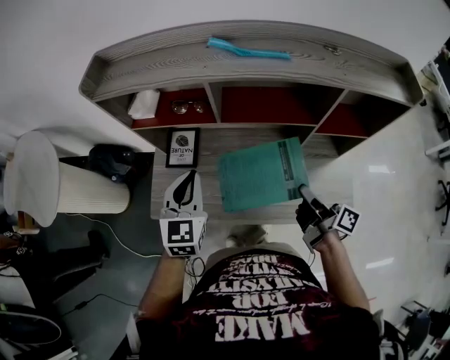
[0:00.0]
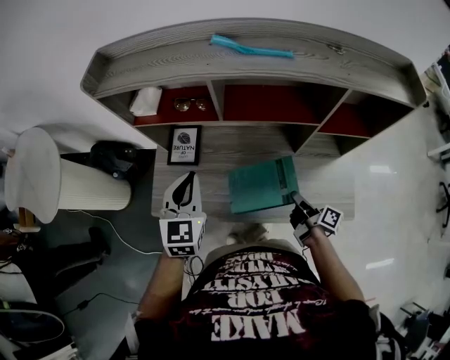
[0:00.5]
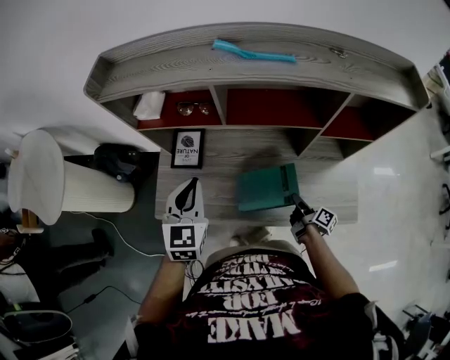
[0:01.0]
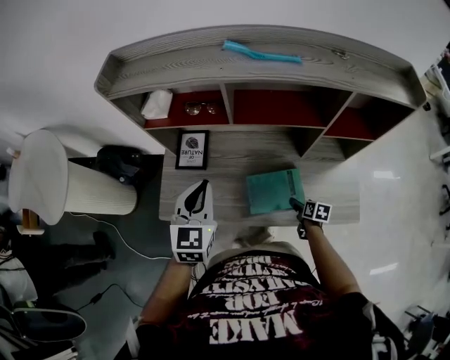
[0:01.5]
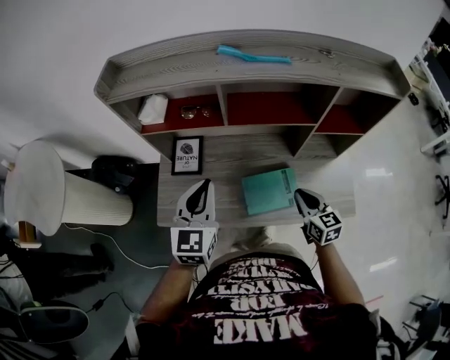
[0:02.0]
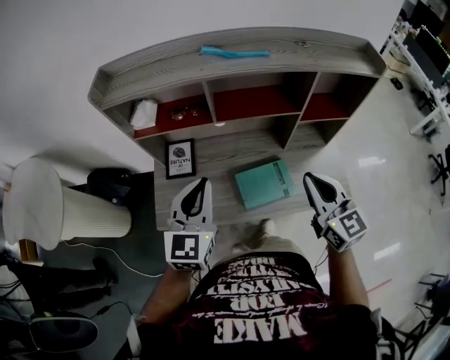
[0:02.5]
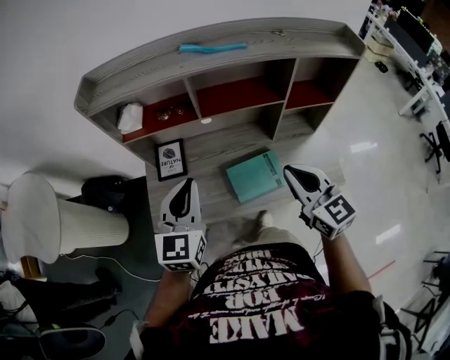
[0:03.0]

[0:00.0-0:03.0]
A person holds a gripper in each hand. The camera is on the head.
0:00.0 to 0:01.5: The right gripper heads downward, covering about 30 cm, points its fingers about 50 degrees further downward, and opens.
0:01.5 to 0:03.0: The right gripper travels upward by some 40 cm, tips its fingers upward by approximately 40 degrees, and closes. Meanwhile the left gripper shifts approximately 10 cm upward and backward.

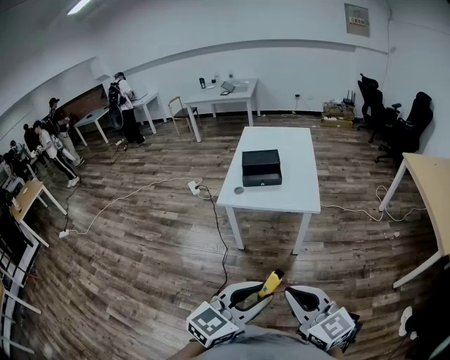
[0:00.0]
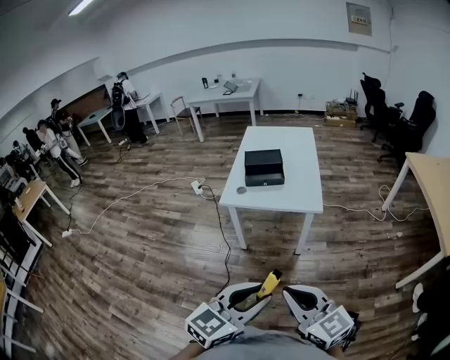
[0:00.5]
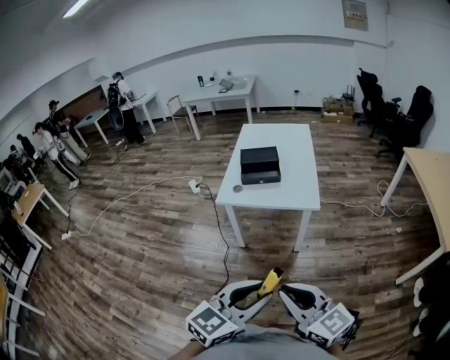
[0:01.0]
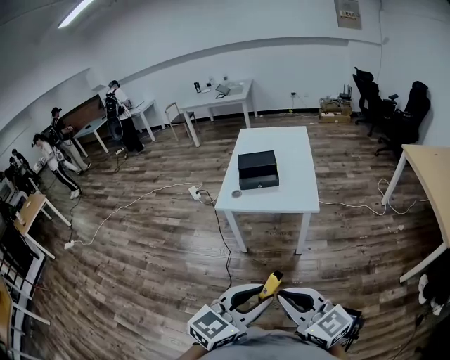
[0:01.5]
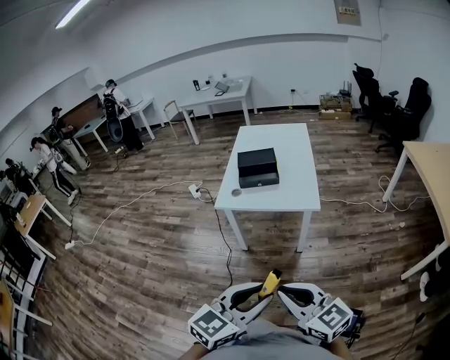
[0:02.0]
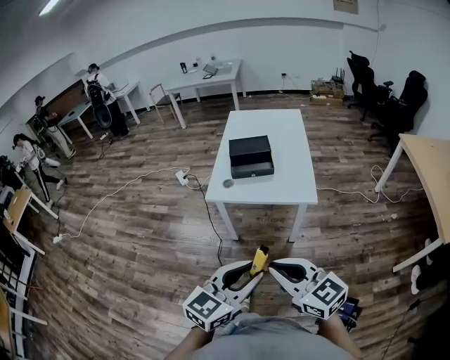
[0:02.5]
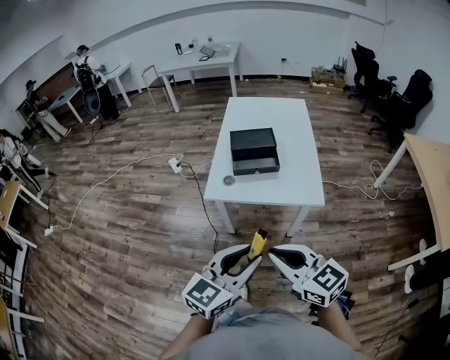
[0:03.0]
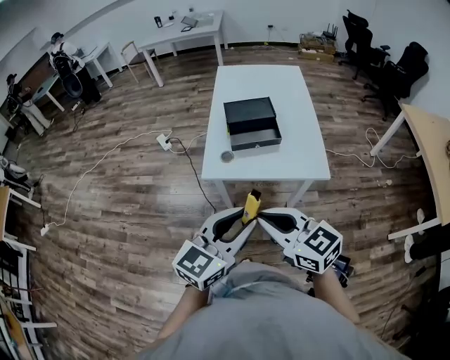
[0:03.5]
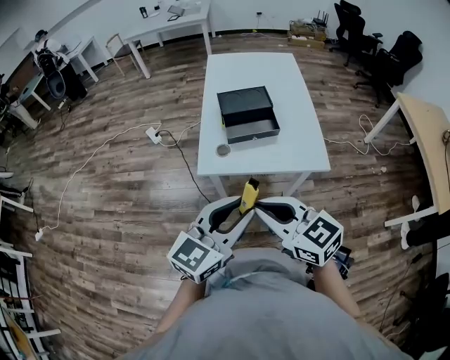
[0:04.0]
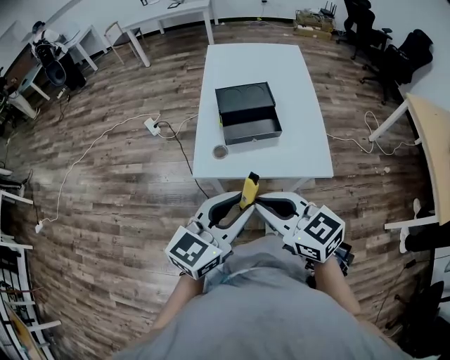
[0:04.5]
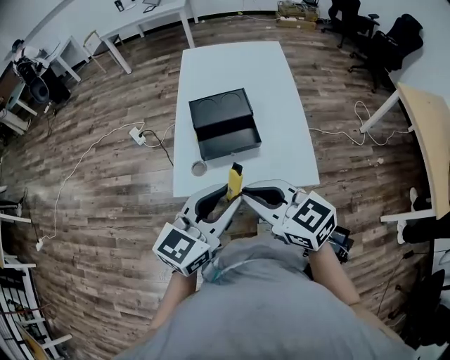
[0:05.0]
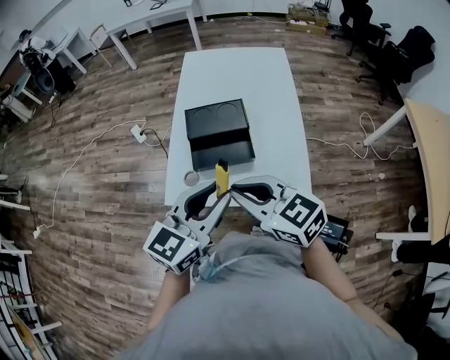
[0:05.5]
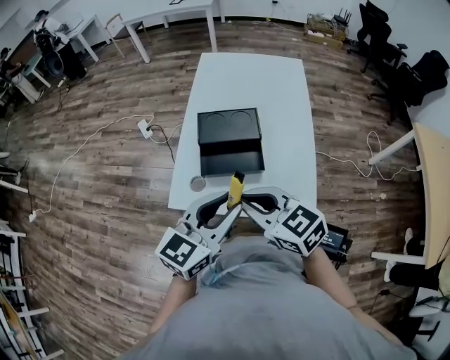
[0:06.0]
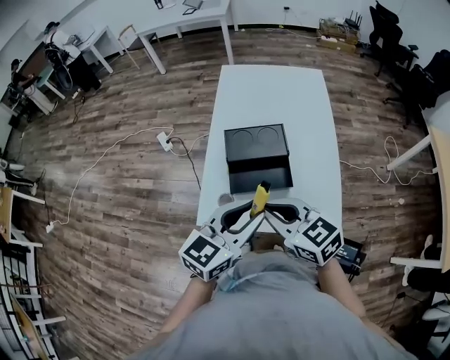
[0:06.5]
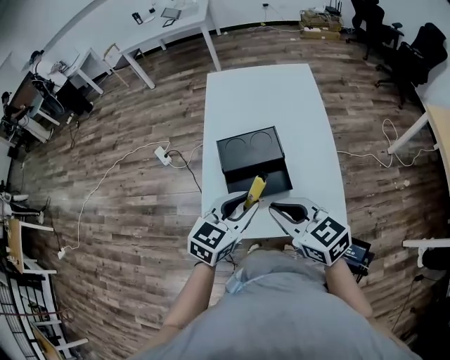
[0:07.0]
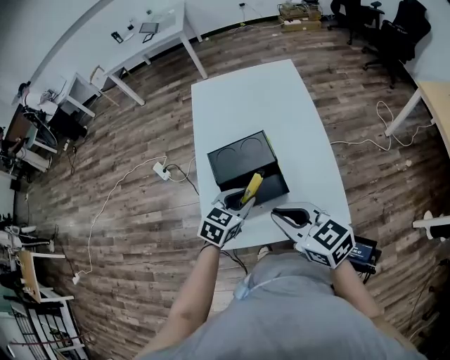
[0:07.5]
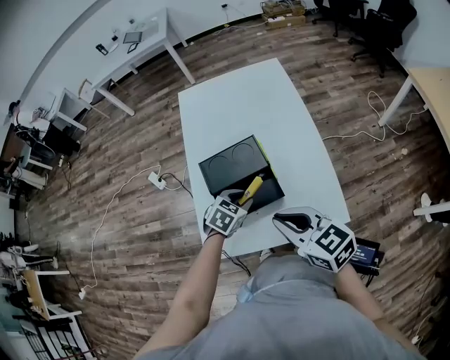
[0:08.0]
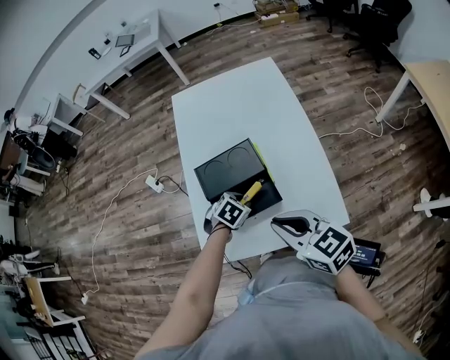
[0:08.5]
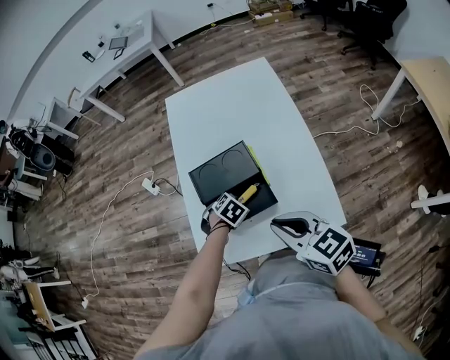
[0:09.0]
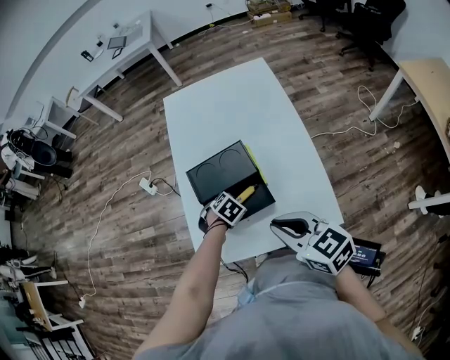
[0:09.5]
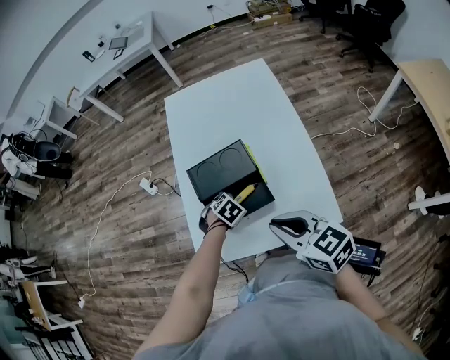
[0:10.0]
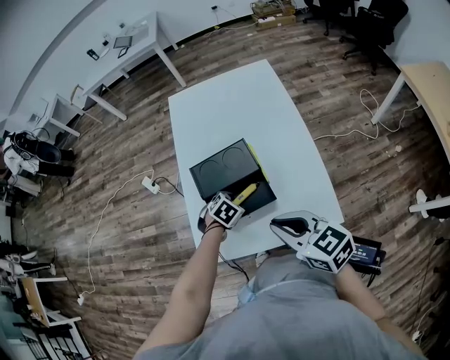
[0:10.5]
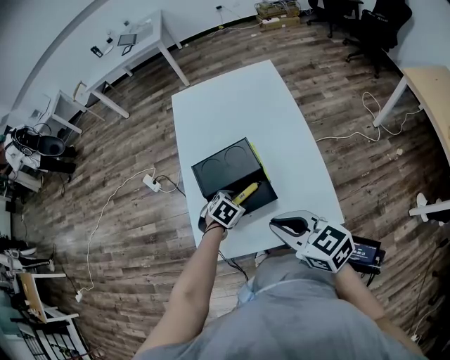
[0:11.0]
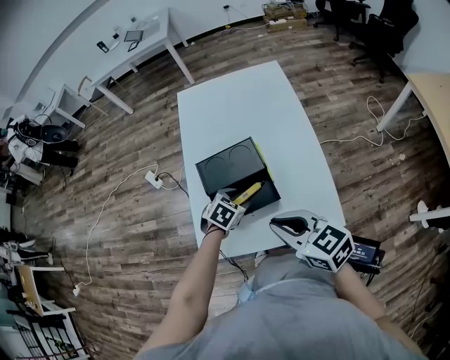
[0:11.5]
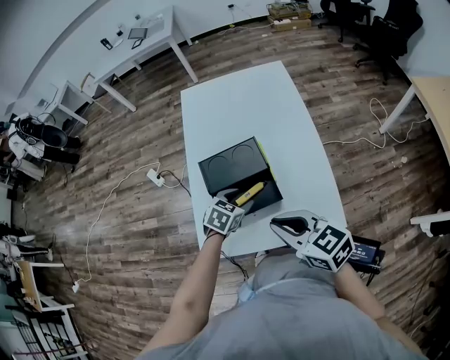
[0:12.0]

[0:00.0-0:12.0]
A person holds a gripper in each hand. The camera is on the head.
0:00.0 to 0:02.0: There are only small adjustments of the grippers.
0:02.0 to 0:04.0: Both grippers travel together forward and to the left, approximately 30 cm.
0:04.0 to 0:06.0: Both grippers move forward and to the right, roughly 25 cm.
0:06.0 to 0:08.0: The right gripper moves forward, roughly 5 cm, and changes its angle by approximately 20 degrees; the left gripper moves downward and forward, approximately 30 cm, and tilts its fingers about 40 degrees downward.
0:08.0 to 0:10.0: The left gripper is displaced downward by some 10 cm, and turns by roughly 20 degrees.
0:10.0 to 0:12.0: The left gripper travels upward by some 10 cm, and changes its angle by roughly 30 degrees.

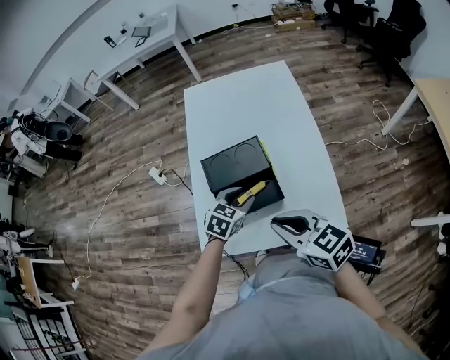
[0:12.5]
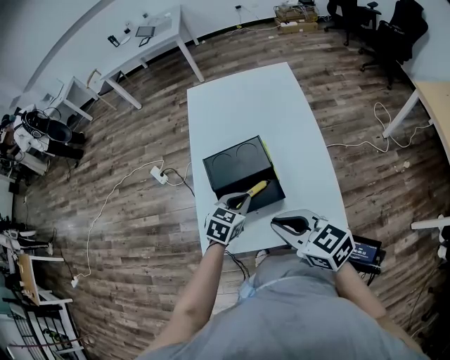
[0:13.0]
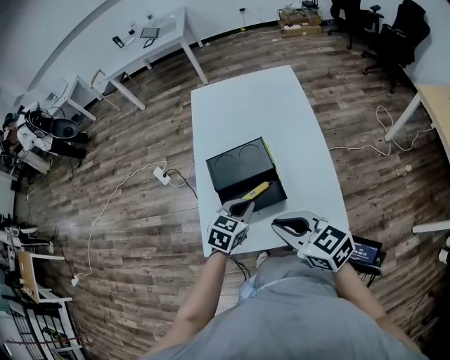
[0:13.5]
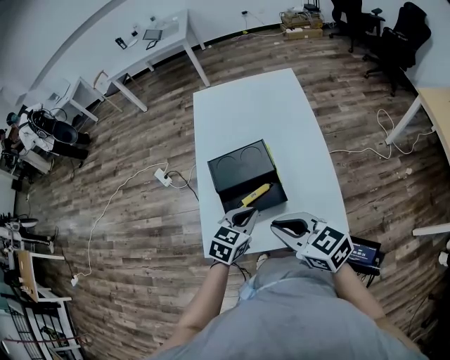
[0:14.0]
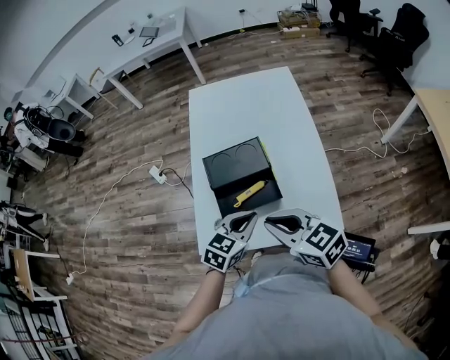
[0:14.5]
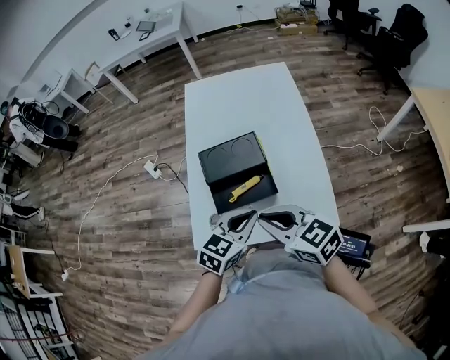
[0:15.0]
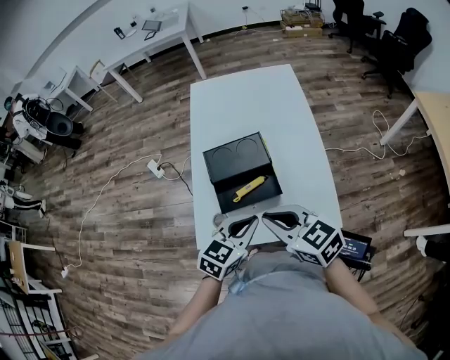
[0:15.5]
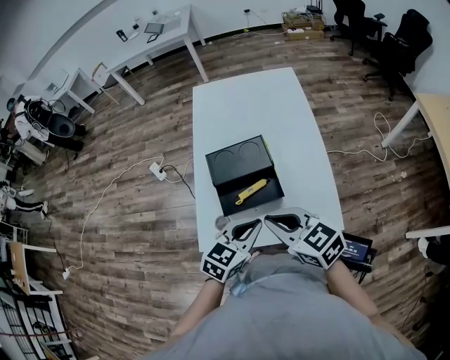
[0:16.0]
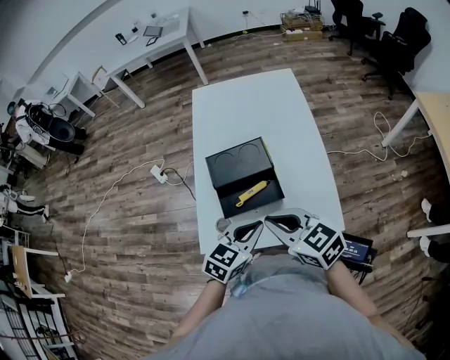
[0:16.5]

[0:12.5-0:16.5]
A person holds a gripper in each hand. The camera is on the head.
0:12.5 to 0:14.5: The left gripper is displaced backward and upward by about 10 cm, and closes its fingers.
0:14.5 to 0:16.5: The grippers move only a little.

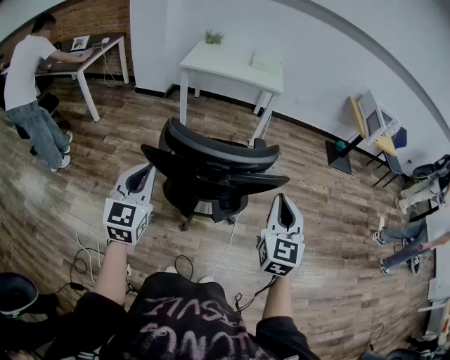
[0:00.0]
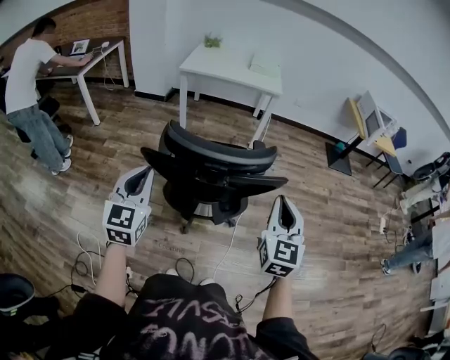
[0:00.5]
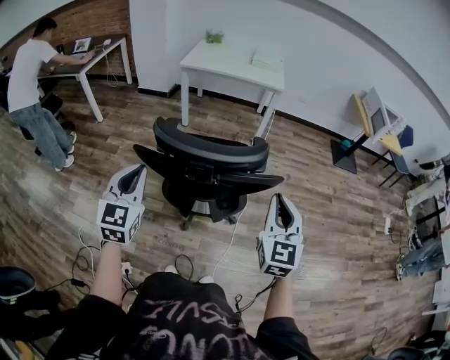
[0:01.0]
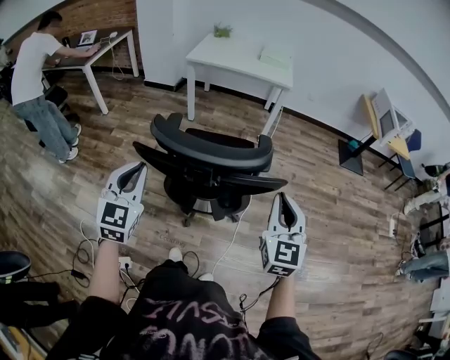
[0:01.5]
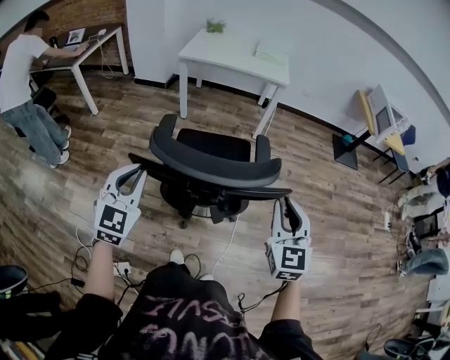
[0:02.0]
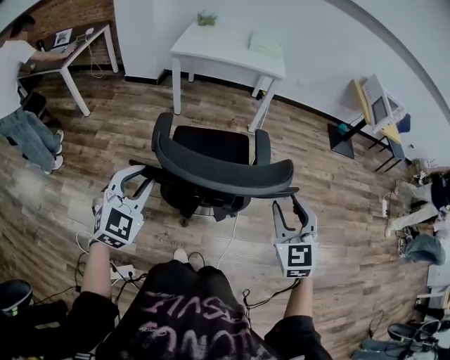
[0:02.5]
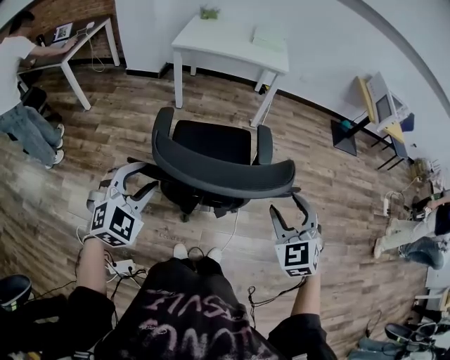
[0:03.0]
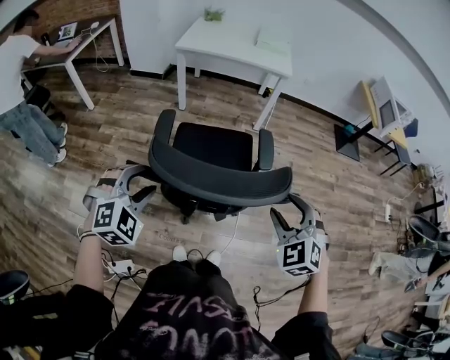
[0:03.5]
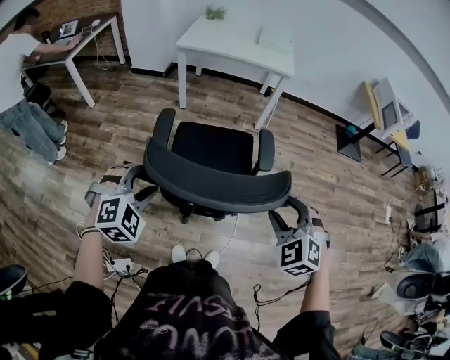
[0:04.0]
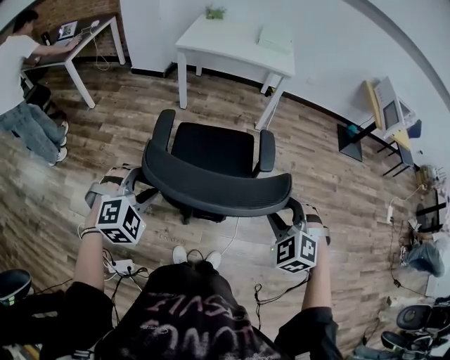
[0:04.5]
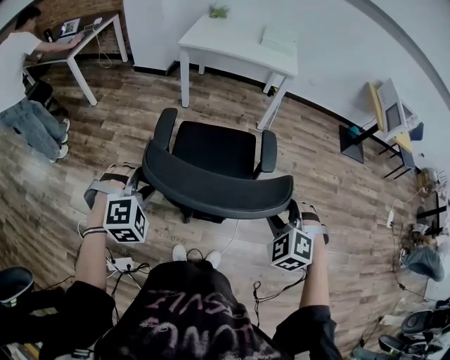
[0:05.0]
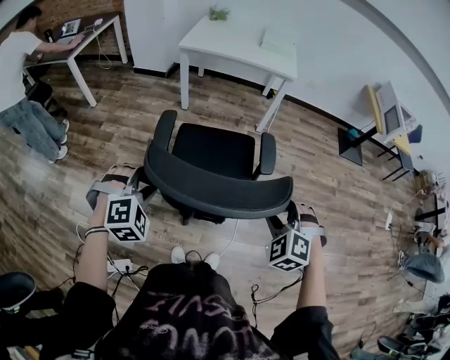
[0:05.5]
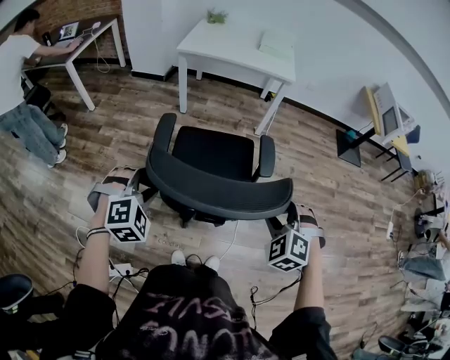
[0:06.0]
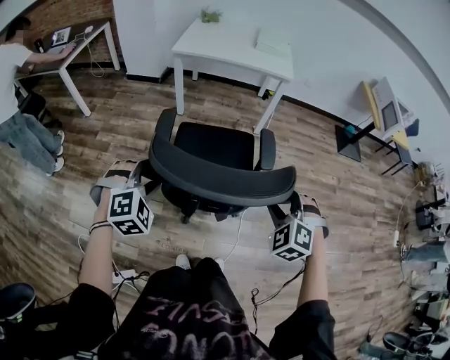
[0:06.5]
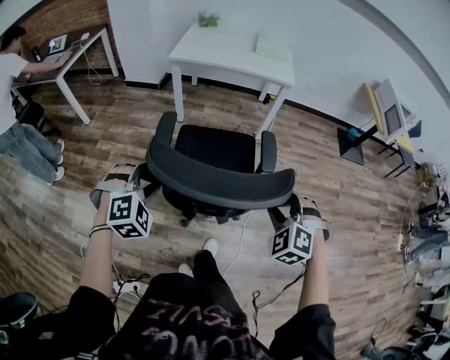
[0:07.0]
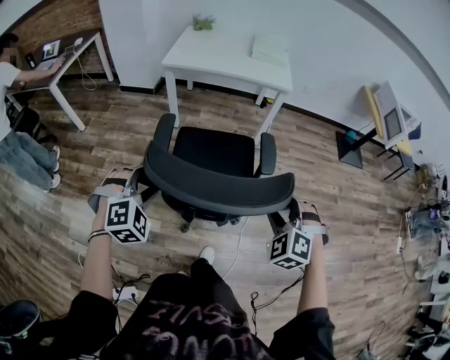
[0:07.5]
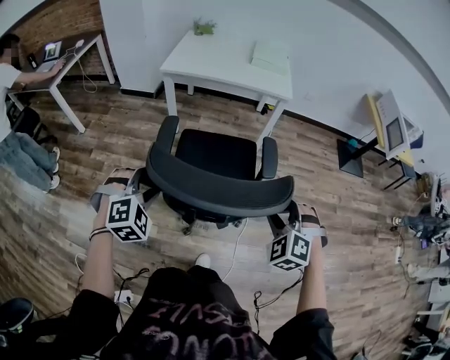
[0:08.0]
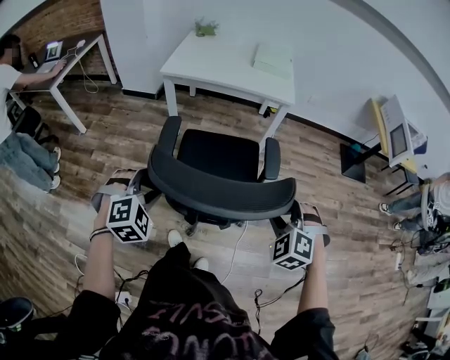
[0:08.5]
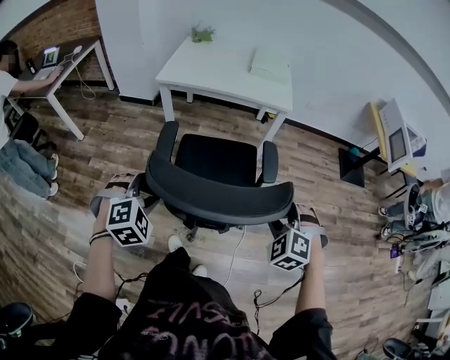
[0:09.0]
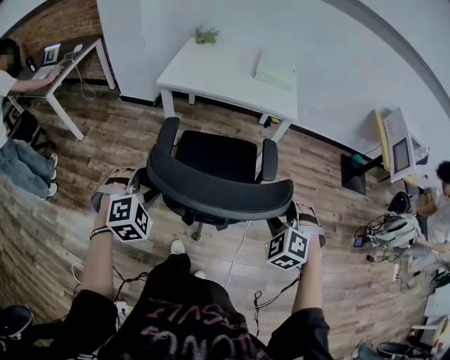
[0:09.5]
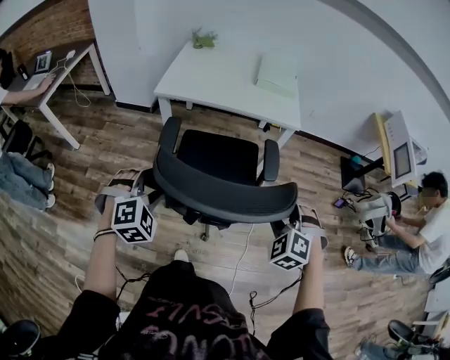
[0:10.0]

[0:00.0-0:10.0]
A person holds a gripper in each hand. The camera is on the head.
0:00.0 to 0:02.0: Both grippers move forward, some 5 cm.
0:02.0 to 0:04.0: The grippers both shift downward by approximately 5 cm. The right gripper swivels approximately 50 degrees, and opens, while the left gripper changes its angle by about 50 degrees, and opens.
0:04.0 to 0:06.0: There are only small adjustments of the grippers.
0:06.0 to 0:08.0: The grippers both shift forward by about 20 cm.
0:08.0 to 0:10.0: The grippers both shift forward by approximately 20 cm.
